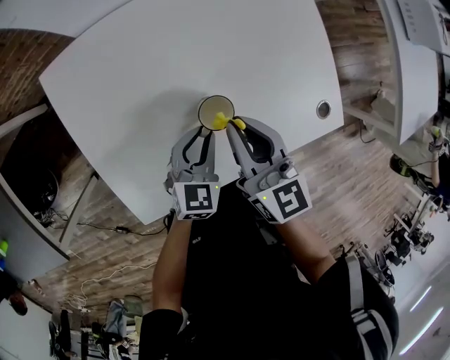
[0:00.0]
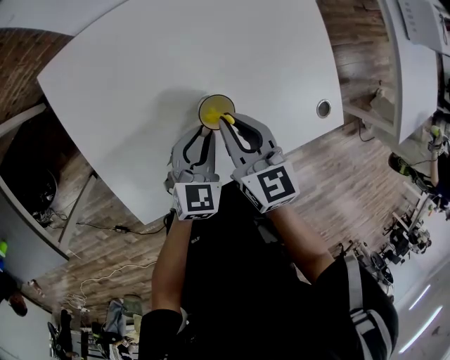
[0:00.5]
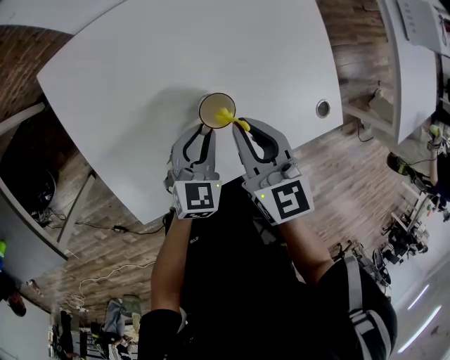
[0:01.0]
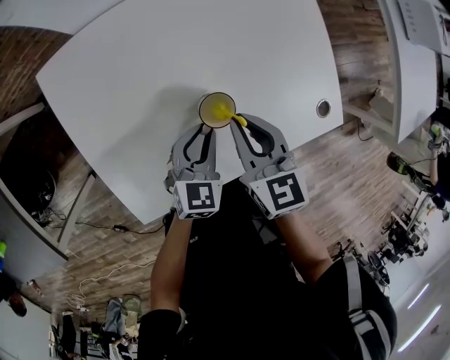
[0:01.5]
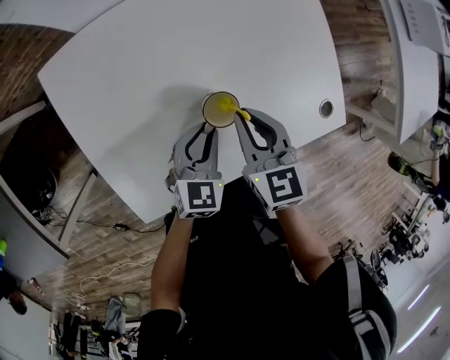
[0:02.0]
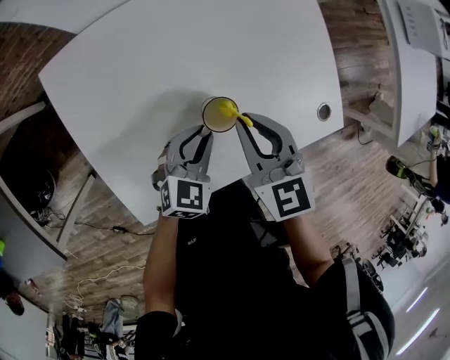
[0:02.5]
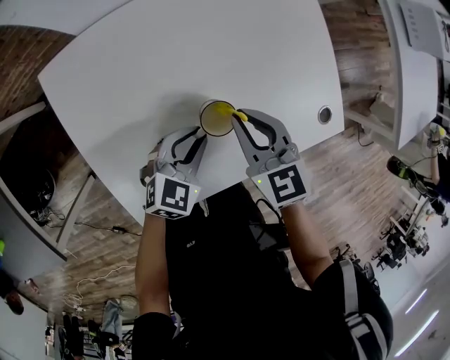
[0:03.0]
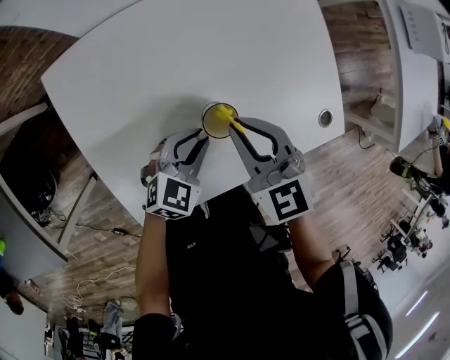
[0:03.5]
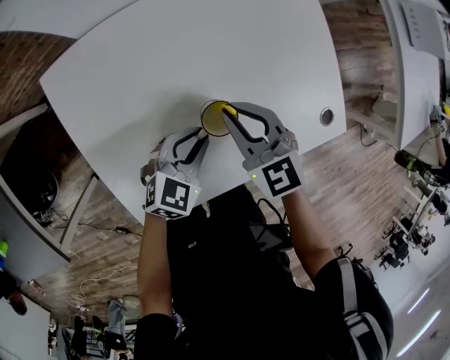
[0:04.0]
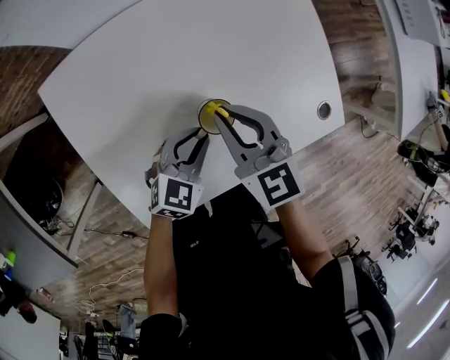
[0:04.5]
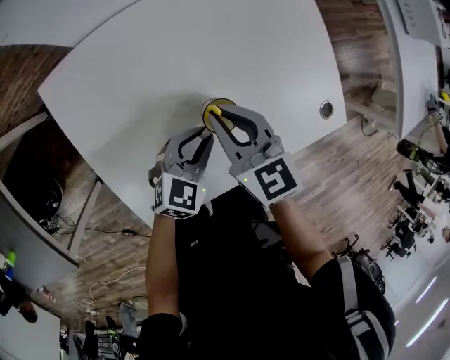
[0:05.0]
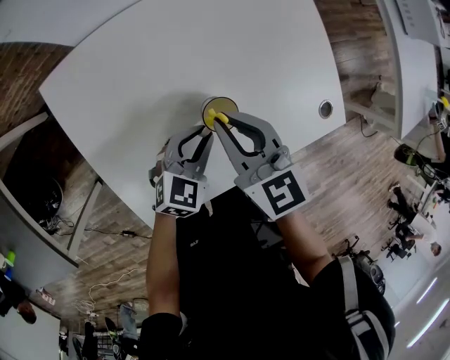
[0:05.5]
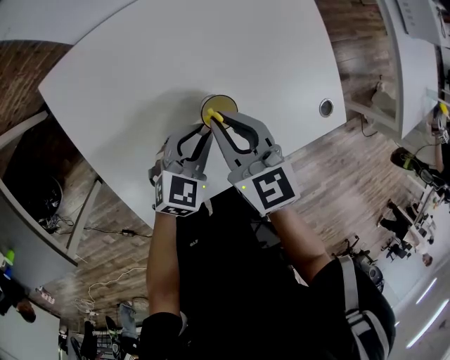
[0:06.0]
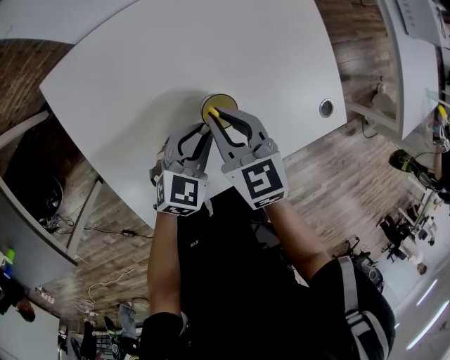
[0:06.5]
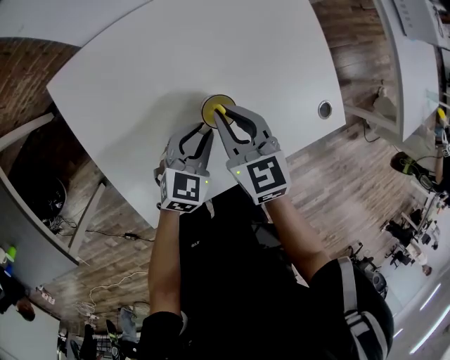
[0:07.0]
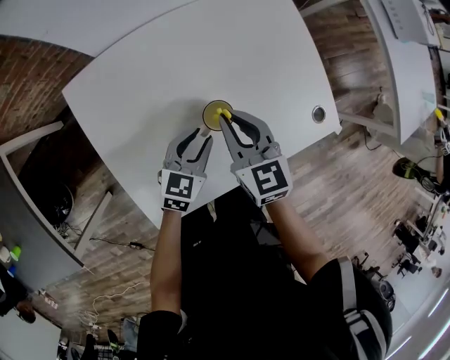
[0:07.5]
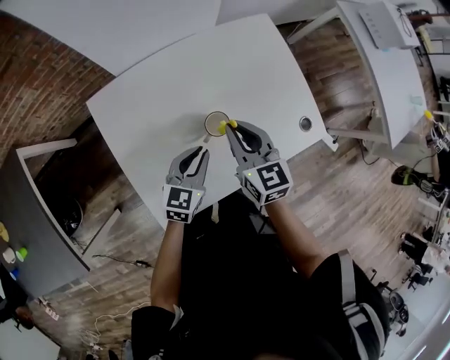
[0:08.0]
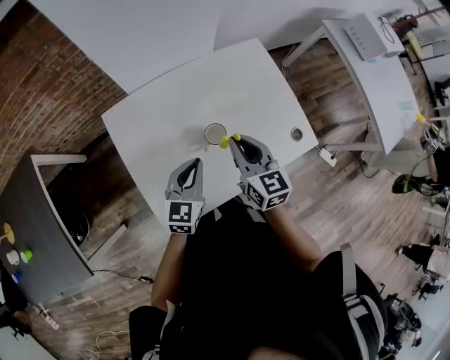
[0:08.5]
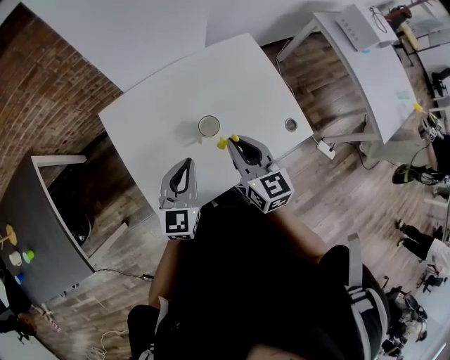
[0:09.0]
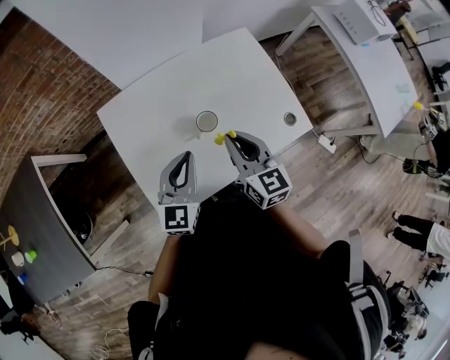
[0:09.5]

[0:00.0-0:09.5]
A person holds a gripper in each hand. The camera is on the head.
0:00.0 to 0:02.0: The right gripper goes about 5 cm downward.
0:02.0 to 0:04.0: The right gripper swivels approximately 20 degrees. The left gripper swivels some 20 degrees.
0:04.0 to 0:05.5: The right gripper ends up some 5 cm from where it was, and turns by approximately 20 degrees.
0:05.5 to 0:07.5: The grippers stay close to where they were, moving slightly.
0:07.5 to 0:09.5: The right gripper heads upward and backward, covering approximately 15 cm. The left gripper moves upward, some 20 cm, swivels some 30 degrees, and closes.

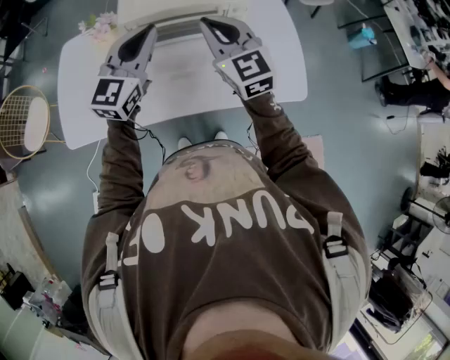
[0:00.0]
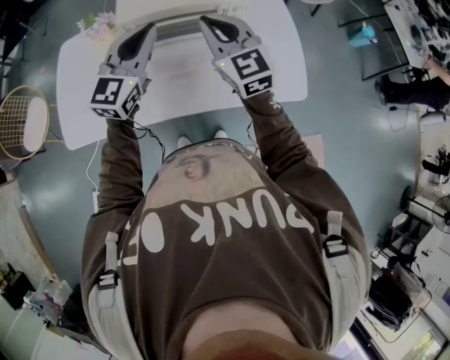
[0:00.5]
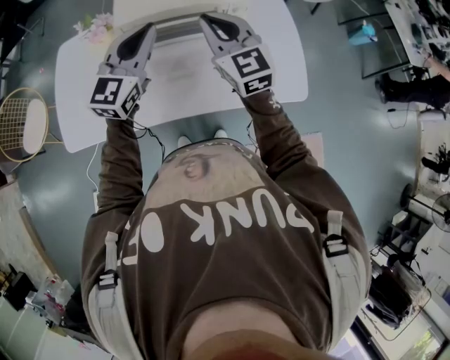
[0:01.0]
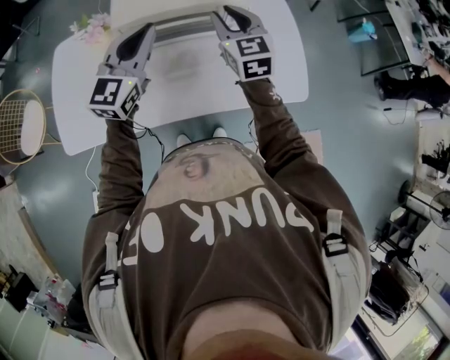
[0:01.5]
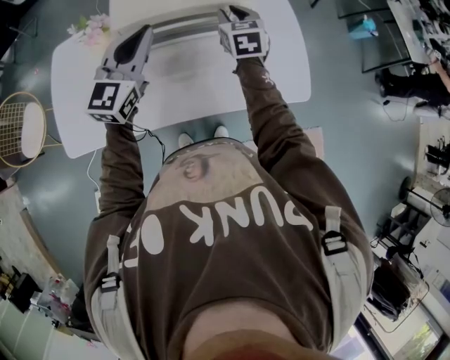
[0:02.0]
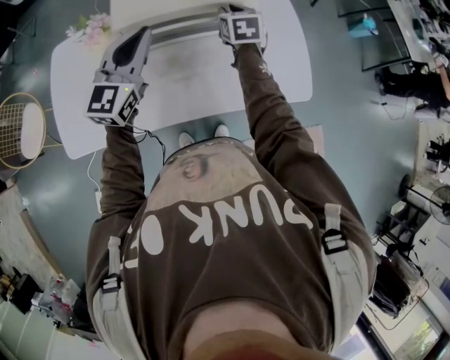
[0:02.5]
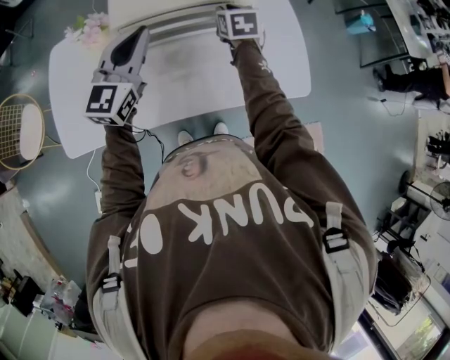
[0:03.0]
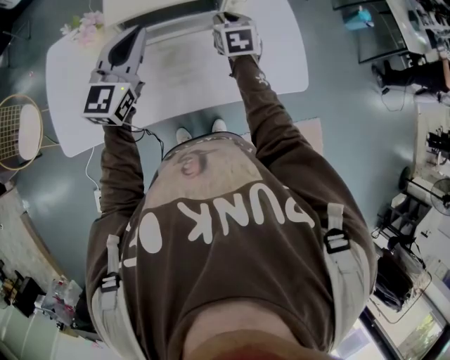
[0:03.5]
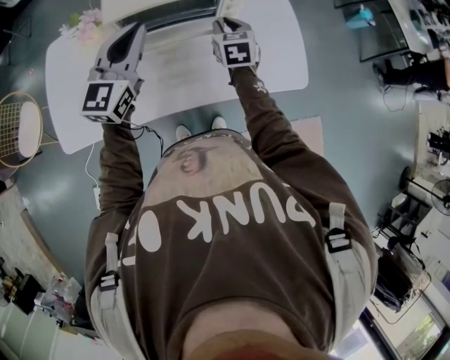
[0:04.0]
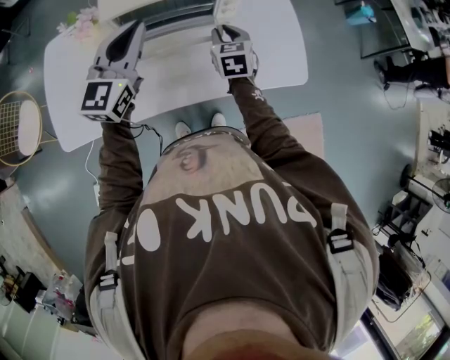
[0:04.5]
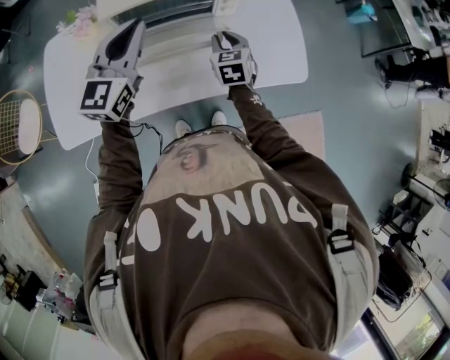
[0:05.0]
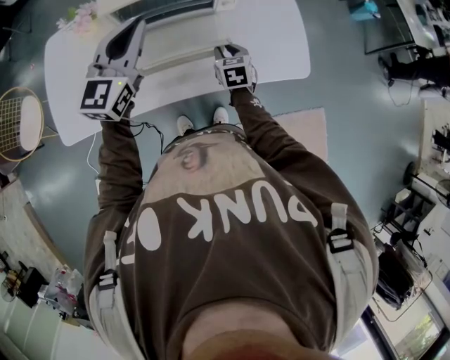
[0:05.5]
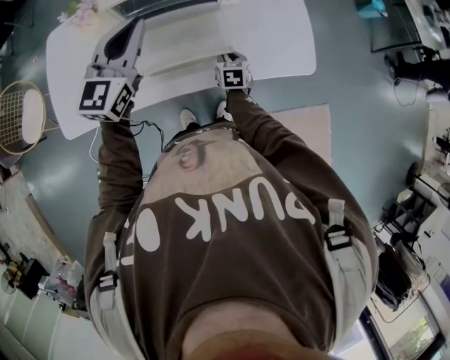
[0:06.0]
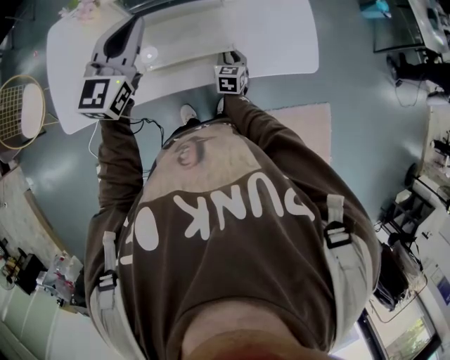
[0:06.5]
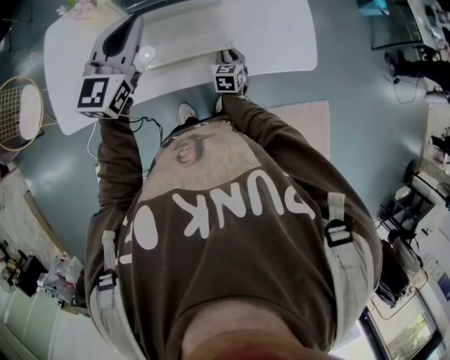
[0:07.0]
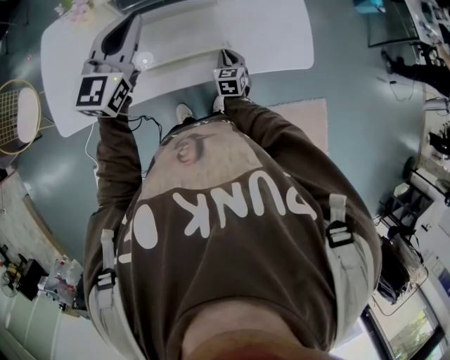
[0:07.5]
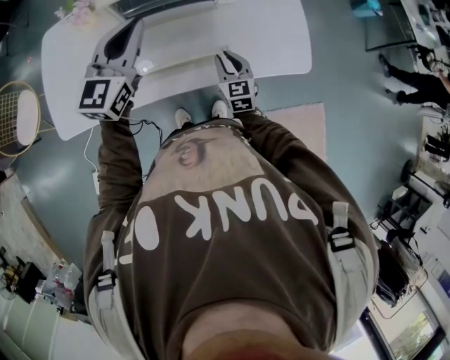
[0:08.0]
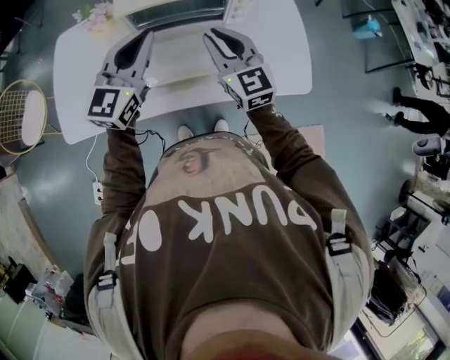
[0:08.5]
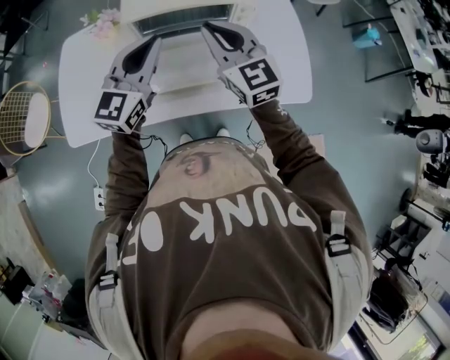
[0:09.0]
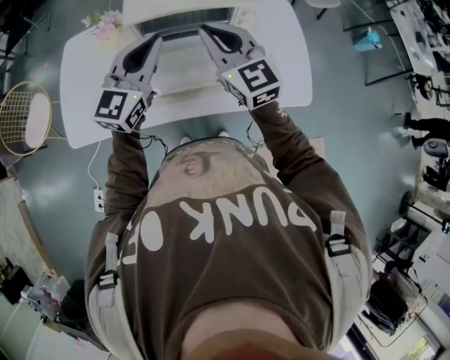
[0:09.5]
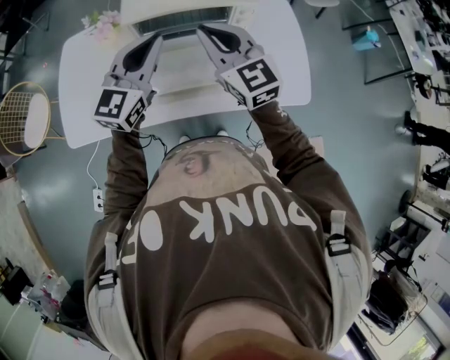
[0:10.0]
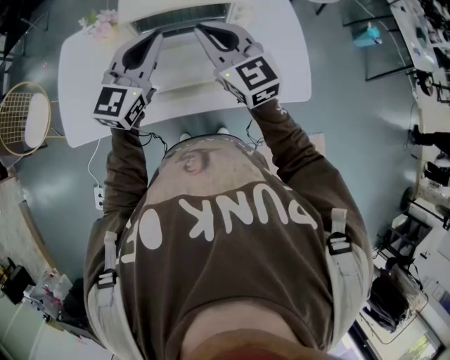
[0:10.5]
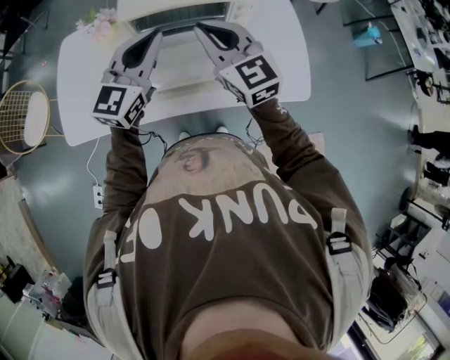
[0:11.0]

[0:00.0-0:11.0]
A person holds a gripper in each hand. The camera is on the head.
0:00.0 to 0:02.0: The right gripper travels forward and downward by roughly 20 cm, turns by some 30 degrees, and opens; the left gripper moves forward, about 5 cm.
0:02.0 to 0:03.5: The right gripper travels downward by approximately 5 cm.
0:03.5 to 0:05.5: The right gripper goes approximately 15 cm downward and backward.
0:05.5 to 0:07.5: The right gripper heads downward, covering some 10 cm.
0:07.5 to 0:09.0: The right gripper travels upward by approximately 40 cm, and tips its fingers upward by roughly 30 degrees.
0:09.0 to 0:11.0: The grippers move only a little.

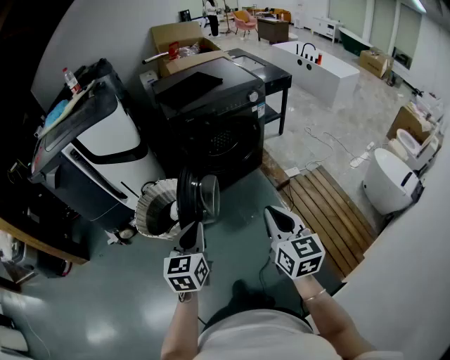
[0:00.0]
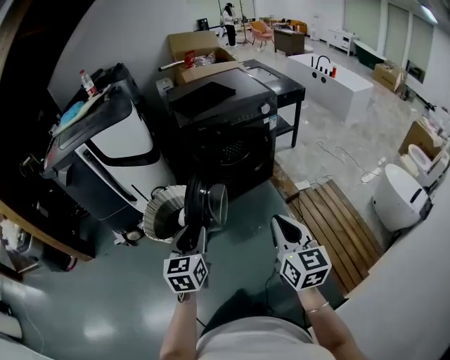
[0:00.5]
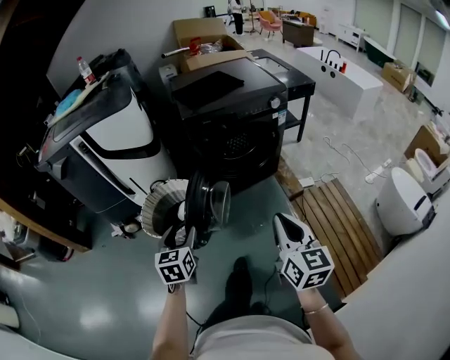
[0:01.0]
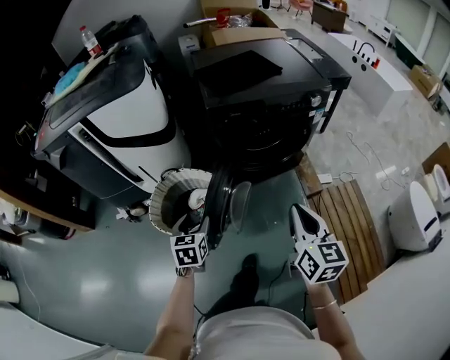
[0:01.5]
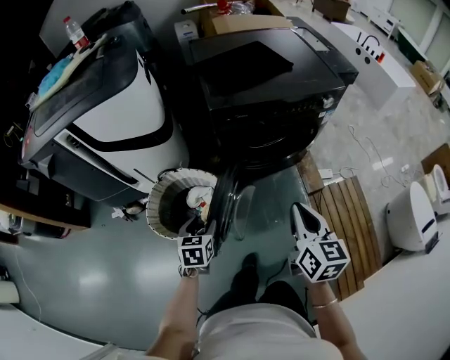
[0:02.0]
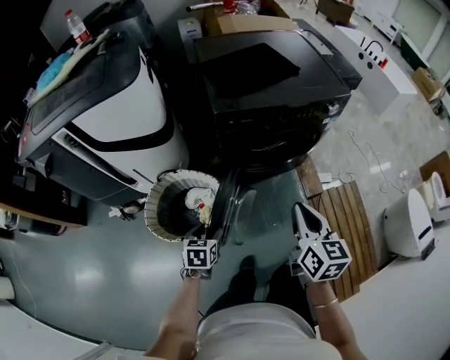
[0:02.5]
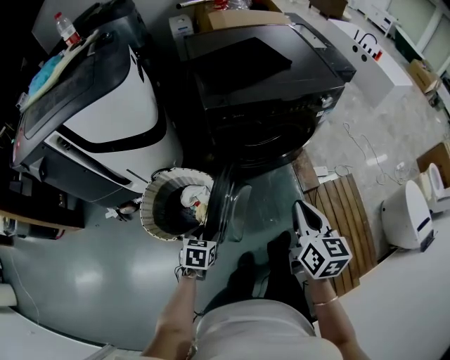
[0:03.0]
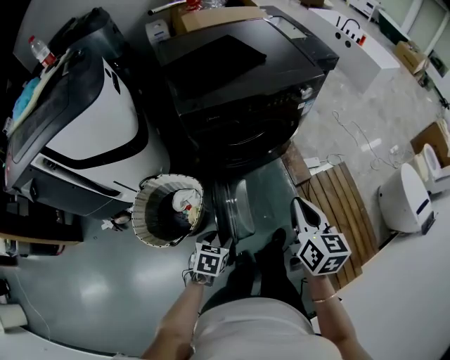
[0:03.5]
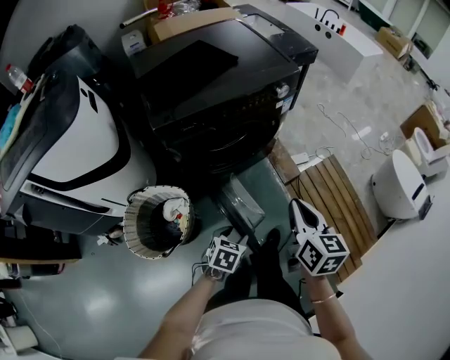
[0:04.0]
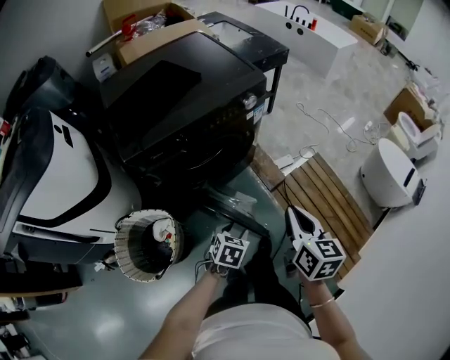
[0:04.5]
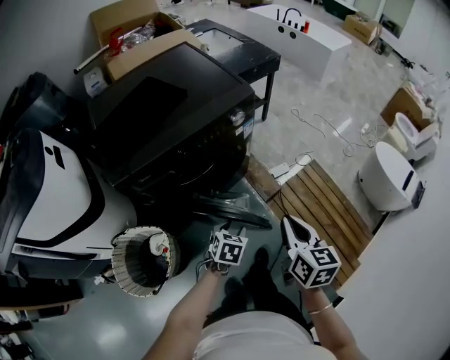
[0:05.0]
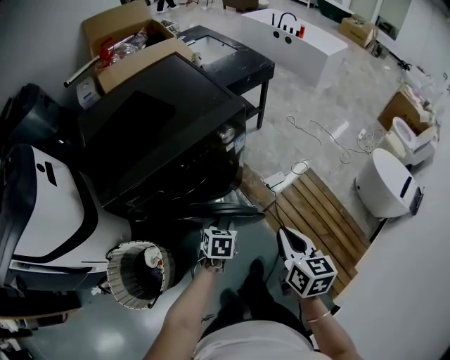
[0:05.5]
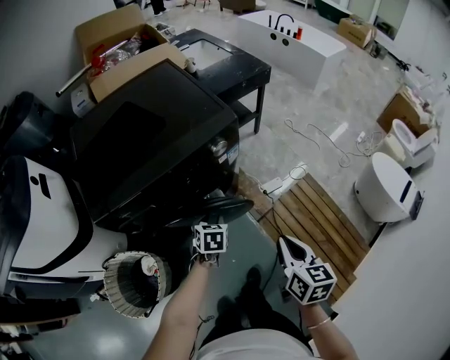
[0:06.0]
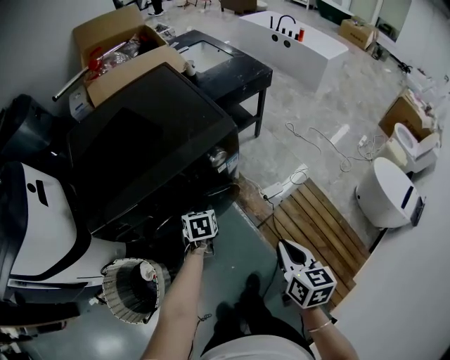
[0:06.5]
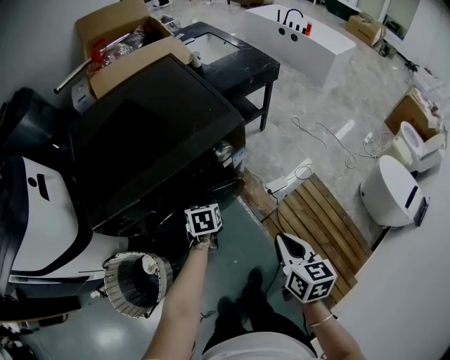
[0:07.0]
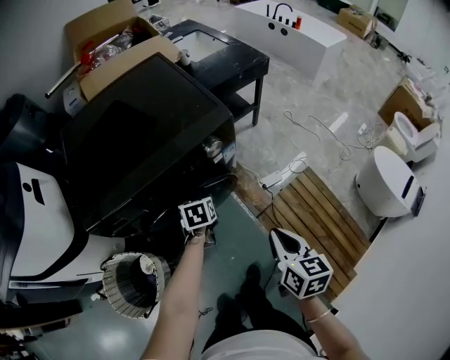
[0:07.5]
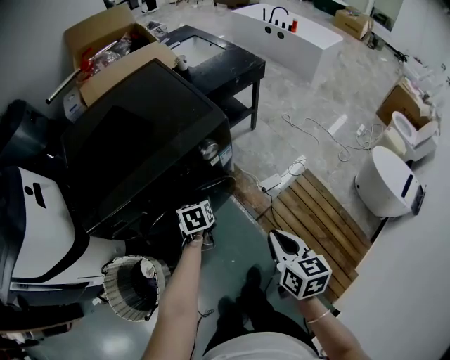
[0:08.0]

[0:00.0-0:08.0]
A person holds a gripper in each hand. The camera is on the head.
0:00.0 to 0:02.0: The right gripper heads forward, covering roughly 35 cm; the left gripper travels forward and downward by some 40 cm, changes its angle by approximately 30 degrees, and opens its fingers.
0:02.0 to 0:04.0: The right gripper ends up about 15 cm from where it was. The left gripper moves some 25 cm, and rotates approximately 40 degrees.
0:04.0 to 0:06.0: The right gripper heads forward and to the right, covering roughly 25 cm. Meanwhile the left gripper shifts about 35 cm forward.
0:06.0 to 0:08.0: The left gripper heads forward, covering roughly 10 cm.
